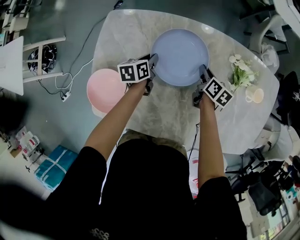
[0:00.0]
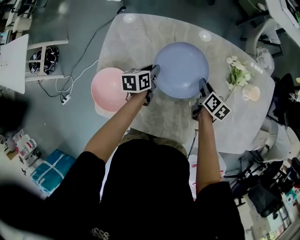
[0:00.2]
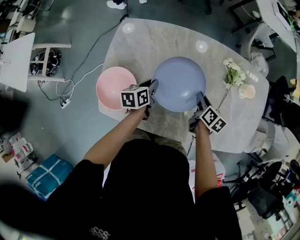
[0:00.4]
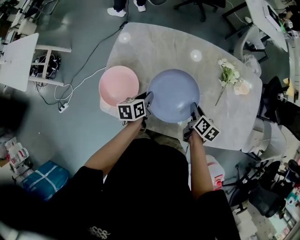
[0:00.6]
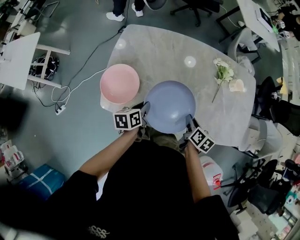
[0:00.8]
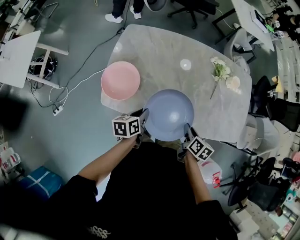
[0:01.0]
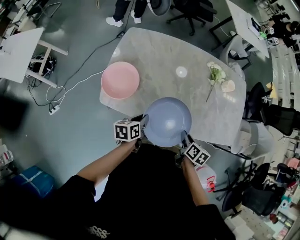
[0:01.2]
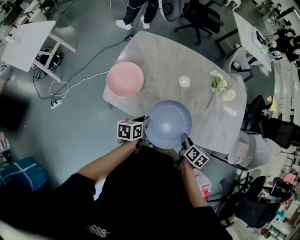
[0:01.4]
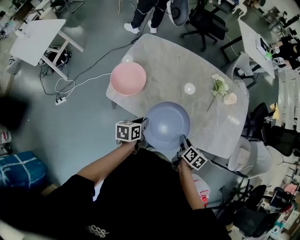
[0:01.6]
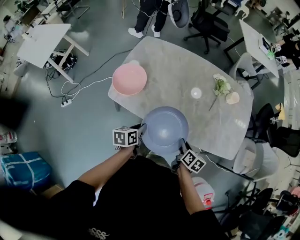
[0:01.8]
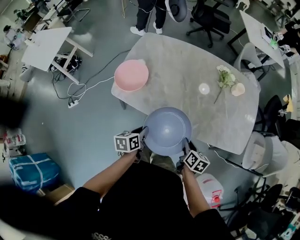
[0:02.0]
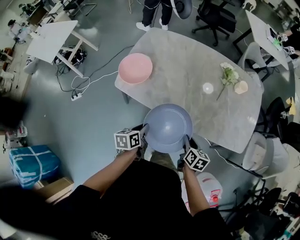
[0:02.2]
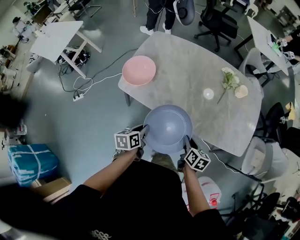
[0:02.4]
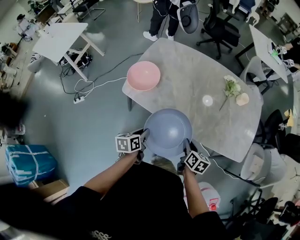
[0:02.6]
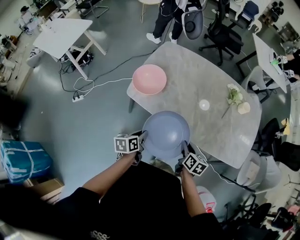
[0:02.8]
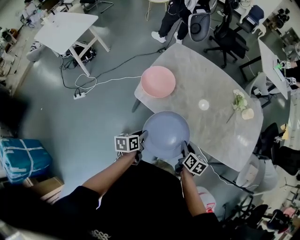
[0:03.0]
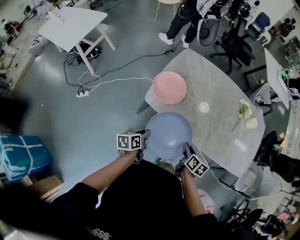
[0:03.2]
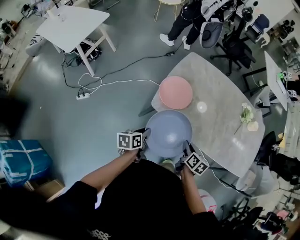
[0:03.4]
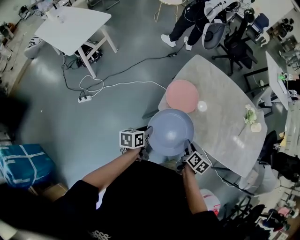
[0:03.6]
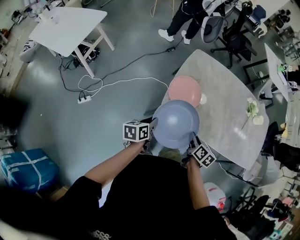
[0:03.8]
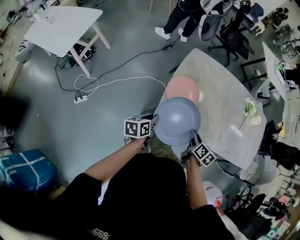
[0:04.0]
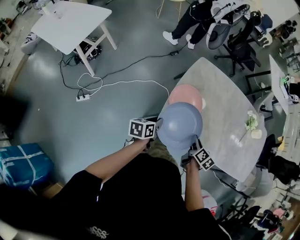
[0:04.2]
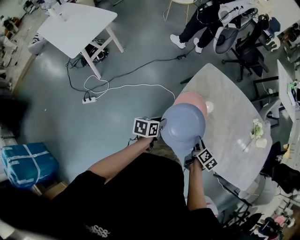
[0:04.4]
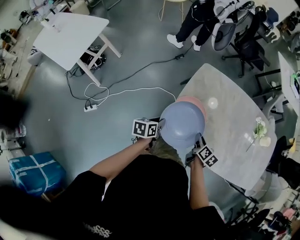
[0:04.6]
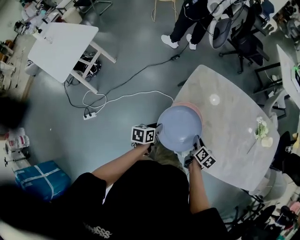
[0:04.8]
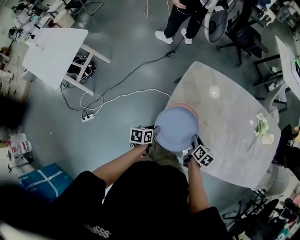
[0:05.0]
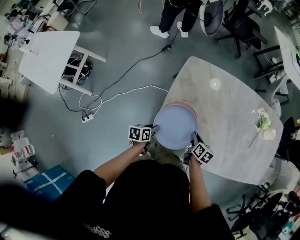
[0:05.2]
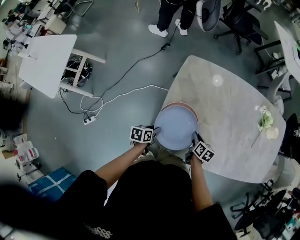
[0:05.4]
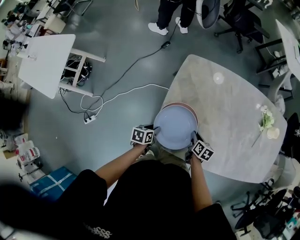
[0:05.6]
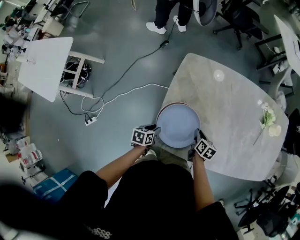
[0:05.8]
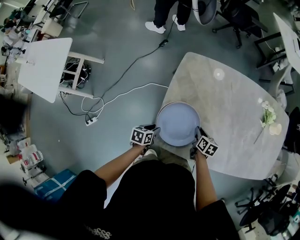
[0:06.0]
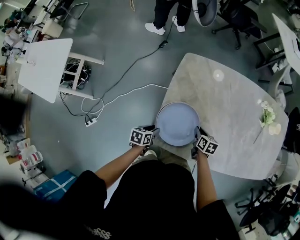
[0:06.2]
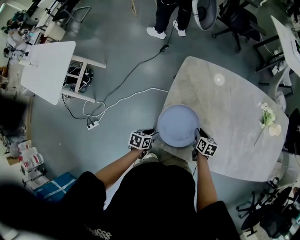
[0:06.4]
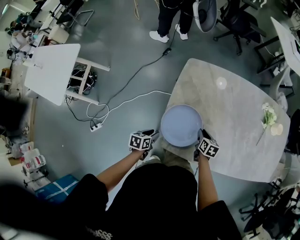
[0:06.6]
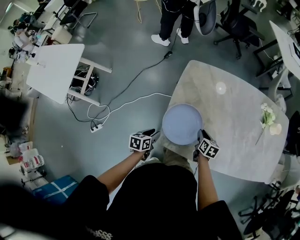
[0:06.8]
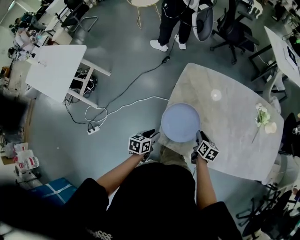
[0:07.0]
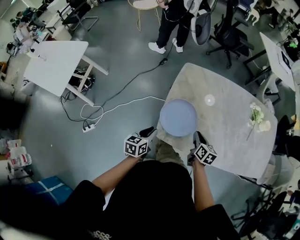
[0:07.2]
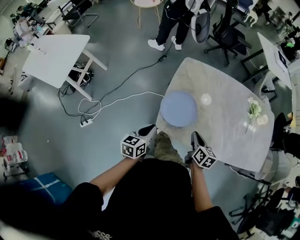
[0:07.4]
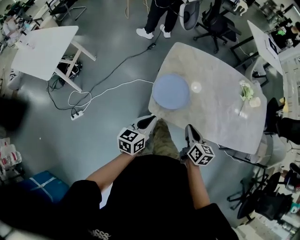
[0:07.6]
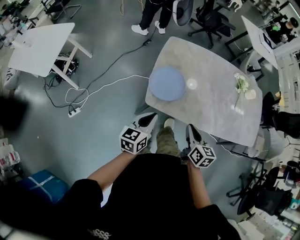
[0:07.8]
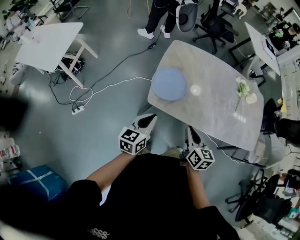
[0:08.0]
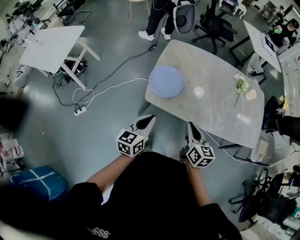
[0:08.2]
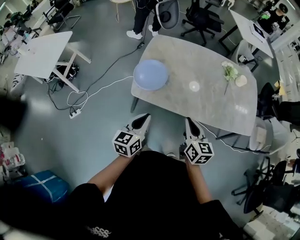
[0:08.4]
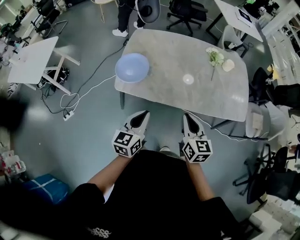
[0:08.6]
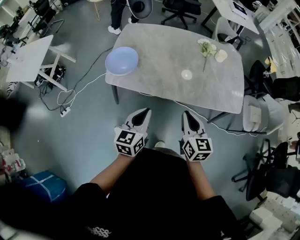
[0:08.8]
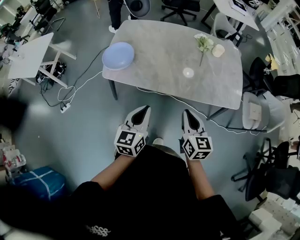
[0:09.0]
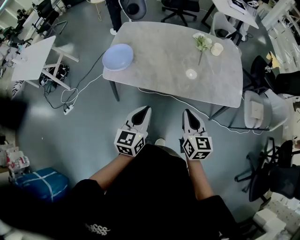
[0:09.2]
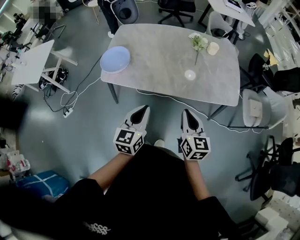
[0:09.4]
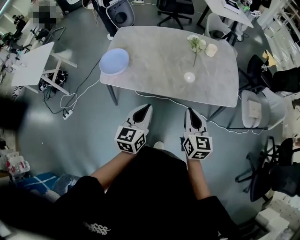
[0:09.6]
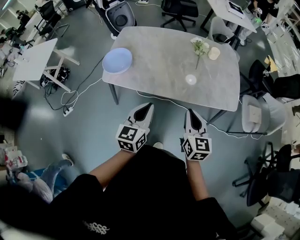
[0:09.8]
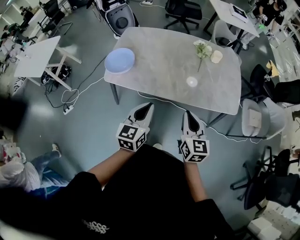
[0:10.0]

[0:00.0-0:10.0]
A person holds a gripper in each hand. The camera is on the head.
0:00.0 to 0:01.4: The pair of grippers is taken backward, some 40 cm.
0:01.4 to 0:02.8: The right gripper moves backward and to the left, approximately 10 cm; the left gripper goes some 15 cm backward and to the left.
0:02.8 to 0:04.2: The two grippers go roughly 30 cm to the left and forward.
0:04.2 to 0:05.8: The right gripper goes approximately 25 cm forward and downward; the left gripper goes roughly 25 cm downward and forward, and swivels about 30 degrees.
0:05.8 to 0:07.2: The two grippers go some 15 cm upward and backward. The left gripper turns by some 30 degrees.
0:07.2 to 0:08.6: The right gripper shifts approximately 40 cm backward, to the right and upward, and turns by approximately 30 degrees. Meanwhile the left gripper goes roughly 40 cm to the right, backward and upward, and rotates about 20 degrees.
0:08.6 to 0:10.0: The two grippers go approximately 20 cm to the right.

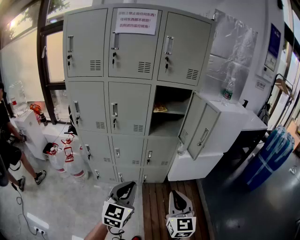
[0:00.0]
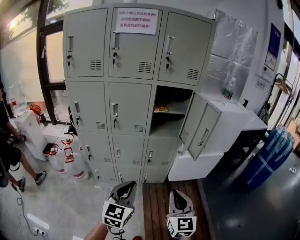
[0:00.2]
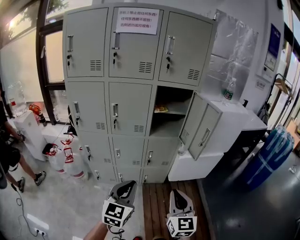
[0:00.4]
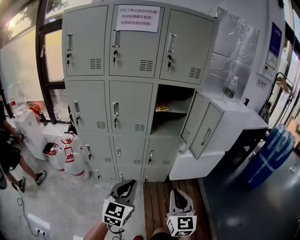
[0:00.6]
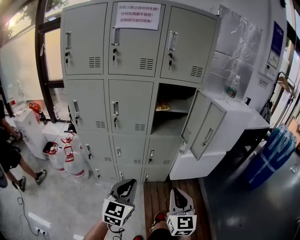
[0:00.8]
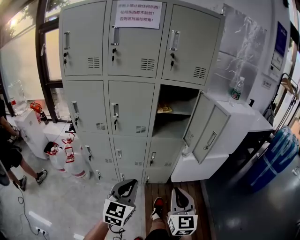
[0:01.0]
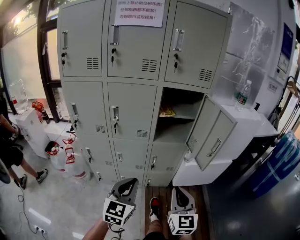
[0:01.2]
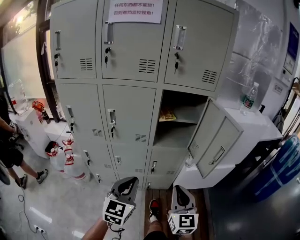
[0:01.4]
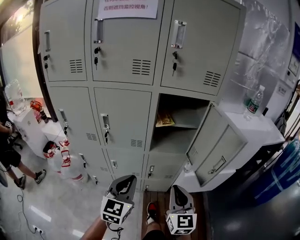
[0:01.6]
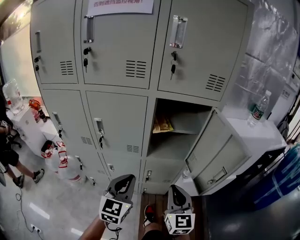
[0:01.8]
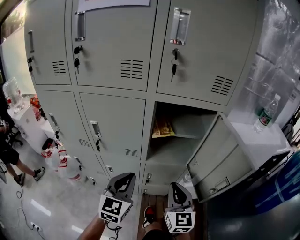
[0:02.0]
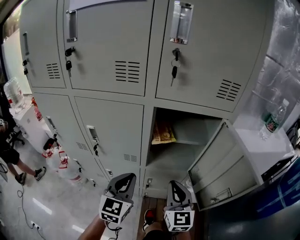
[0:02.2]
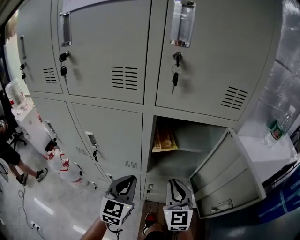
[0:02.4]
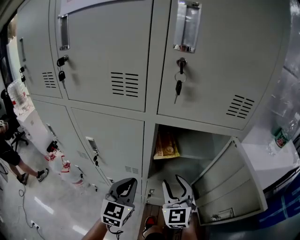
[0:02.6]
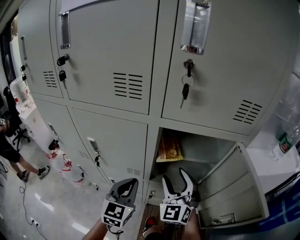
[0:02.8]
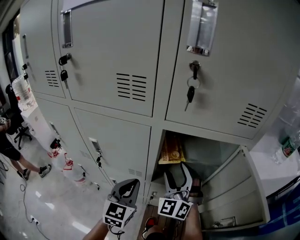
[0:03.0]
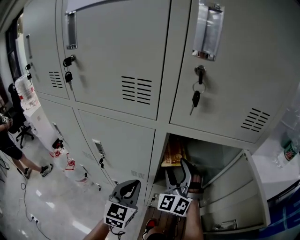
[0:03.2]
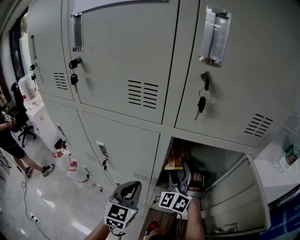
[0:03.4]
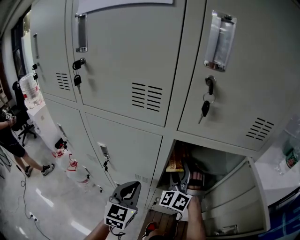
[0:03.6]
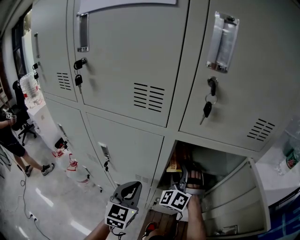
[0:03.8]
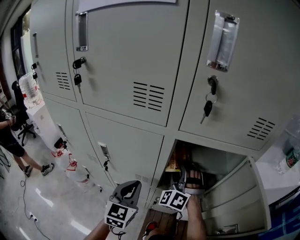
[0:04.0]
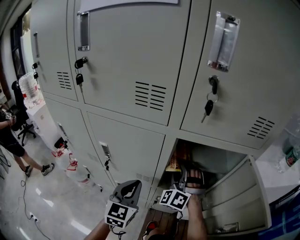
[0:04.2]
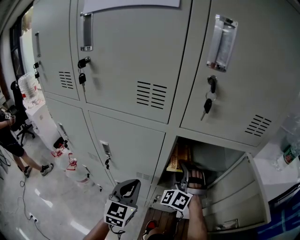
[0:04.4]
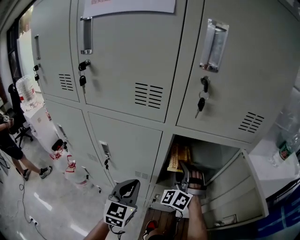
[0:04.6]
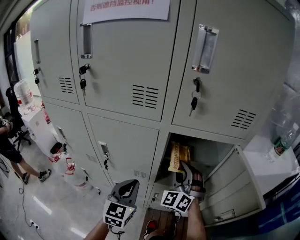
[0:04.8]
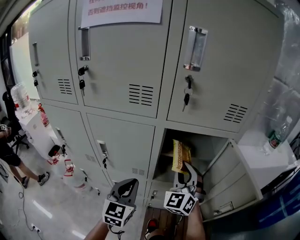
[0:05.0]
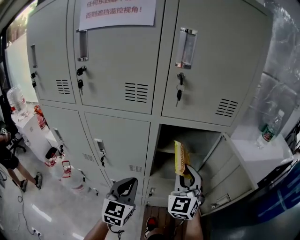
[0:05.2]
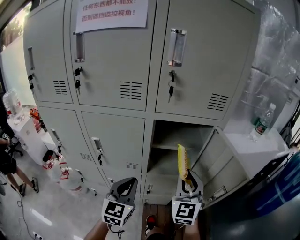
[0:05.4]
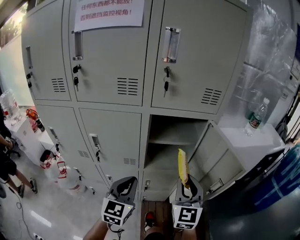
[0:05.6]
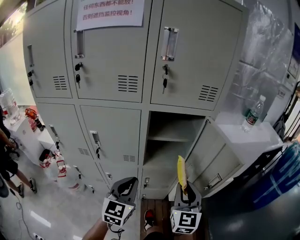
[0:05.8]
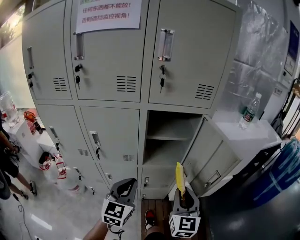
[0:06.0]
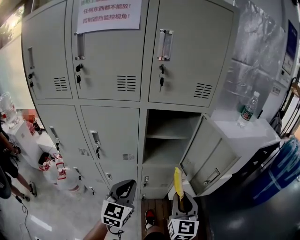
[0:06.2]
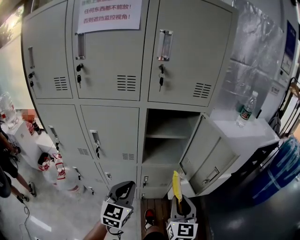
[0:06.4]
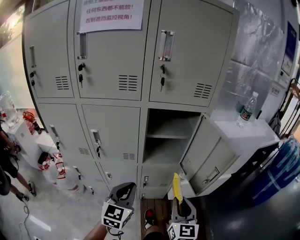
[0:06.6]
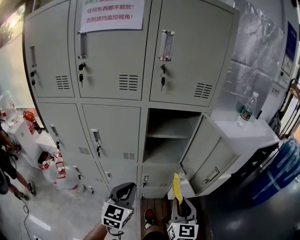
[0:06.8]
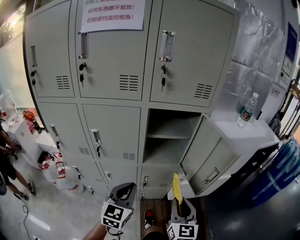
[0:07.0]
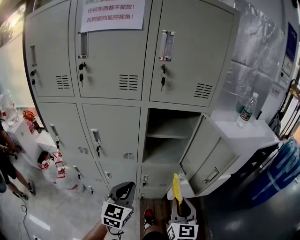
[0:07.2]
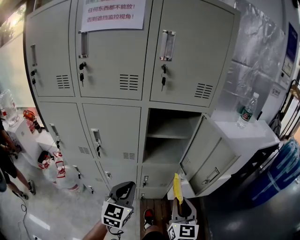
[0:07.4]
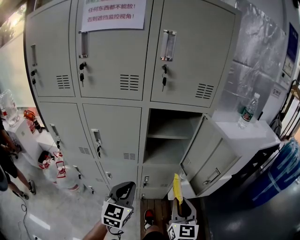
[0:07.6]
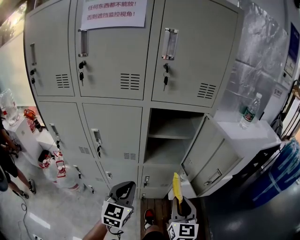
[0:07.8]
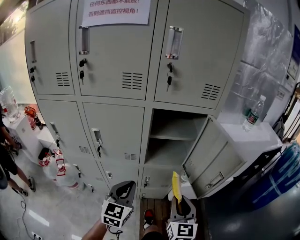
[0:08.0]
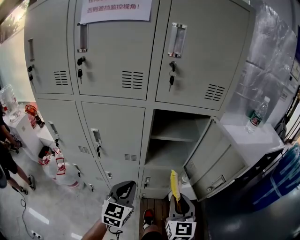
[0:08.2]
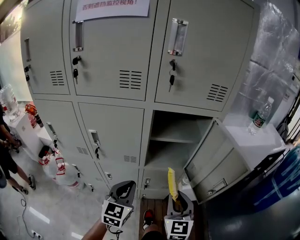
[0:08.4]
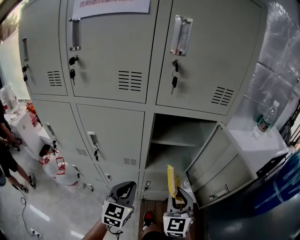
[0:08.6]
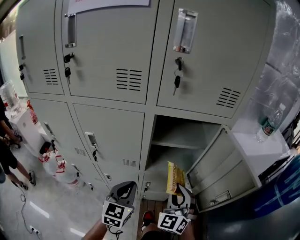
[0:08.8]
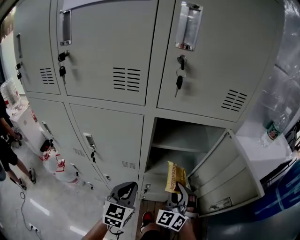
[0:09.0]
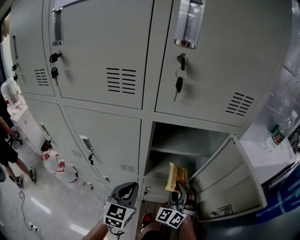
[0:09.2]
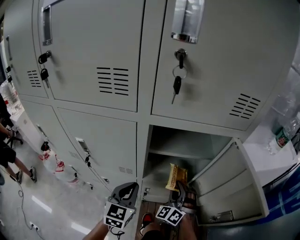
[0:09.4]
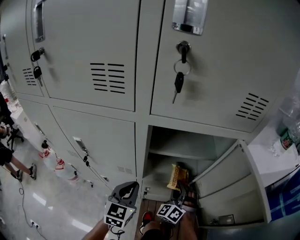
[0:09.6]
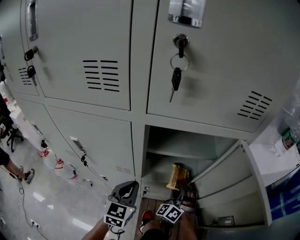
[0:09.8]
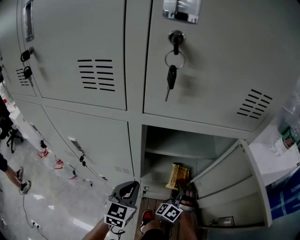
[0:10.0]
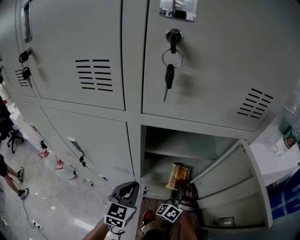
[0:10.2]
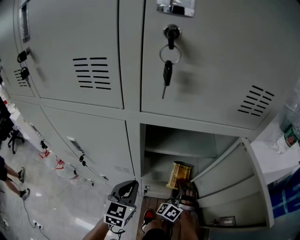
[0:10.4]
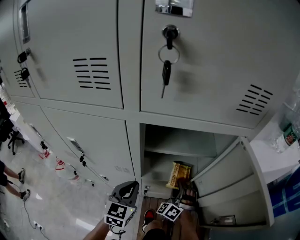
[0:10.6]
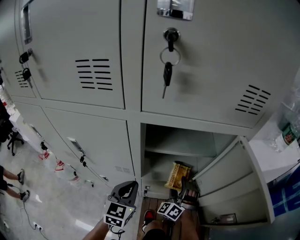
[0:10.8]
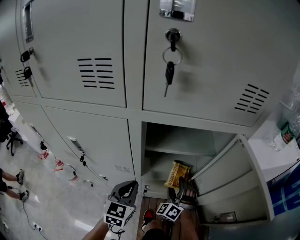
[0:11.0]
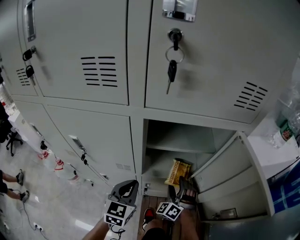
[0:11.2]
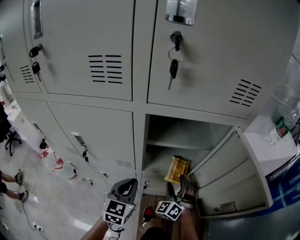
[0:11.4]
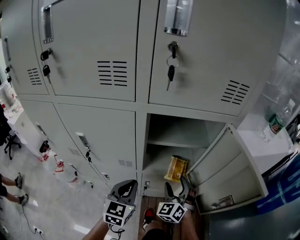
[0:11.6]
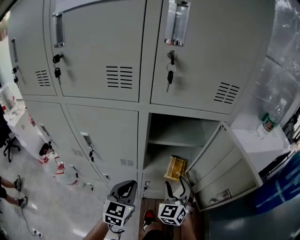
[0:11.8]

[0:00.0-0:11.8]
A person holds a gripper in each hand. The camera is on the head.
0:00.0 to 0:01.4: The two grippers go approximately 15 cm forward.
0:01.4 to 0:03.0: Both grippers move forward, roughly 30 cm. The right gripper rolls counterclockwise, seen from behind, by approximately 50 degrees, and opens up.
0:03.0 to 0:04.4: The right gripper rotates roughly 20 degrees, and closes.
0:04.4 to 0:06.0: The right gripper travels backward and to the right by approximately 30 cm, and twists about 70 degrees clockwise, seen from behind. The left gripper is displaced backward and to the right by roughly 15 cm.
0:06.0 to 0:07.4: The right gripper ends up roughly 5 cm from where it was.
0:07.4 to 0:08.8: The right gripper travels forward by about 15 cm, and rotates around the line of its fingers by roughly 40 degrees, counterclockwise from behind, while the left gripper is displaced forward by some 10 cm.
0:08.8 to 0:10.4: The left gripper goes about 10 cm forward and downward. The right gripper moves downward and forward, some 25 cm, and changes its angle by roughly 30 degrees.
0:10.4 to 0:11.8: The right gripper travels upward and backward by some 15 cm, swivels about 40 degrees, and opens its fingers. Meanwhile the left gripper shifts approximately 5 cm backward.

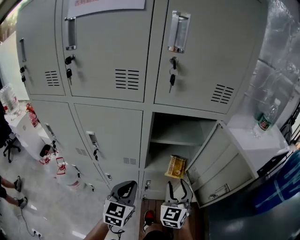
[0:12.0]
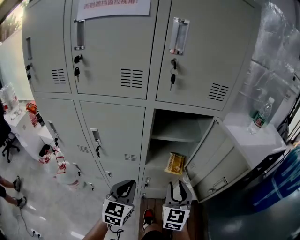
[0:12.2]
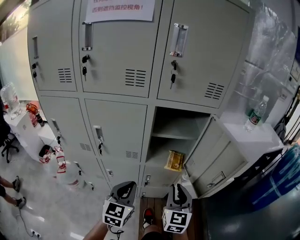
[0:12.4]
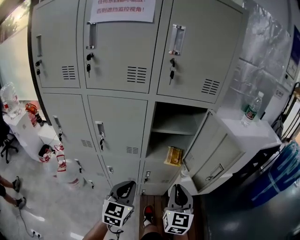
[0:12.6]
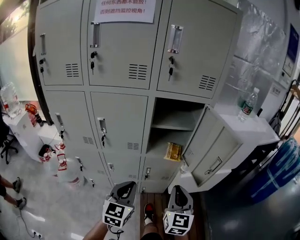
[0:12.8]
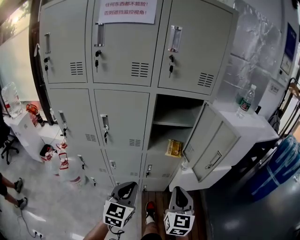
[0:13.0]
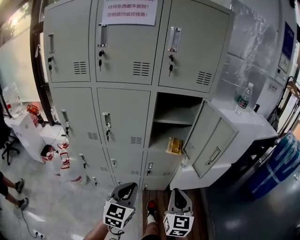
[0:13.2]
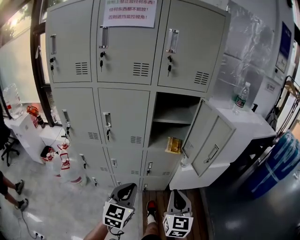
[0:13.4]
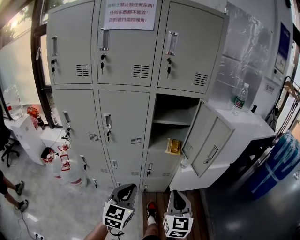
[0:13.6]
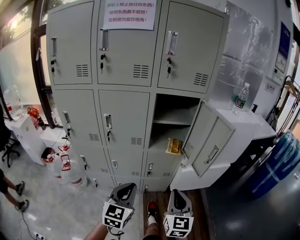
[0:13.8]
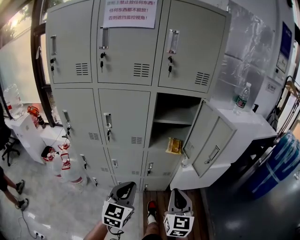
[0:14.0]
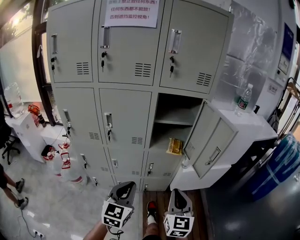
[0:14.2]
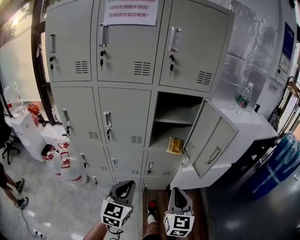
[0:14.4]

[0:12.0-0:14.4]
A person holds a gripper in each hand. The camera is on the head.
0:12.0 to 0:13.2: Both grippers travel together backward, about 20 cm. The right gripper swivels some 20 degrees, and closes its fingers.
0:13.2 to 0:14.4: There are only small adjustments of the grippers.
